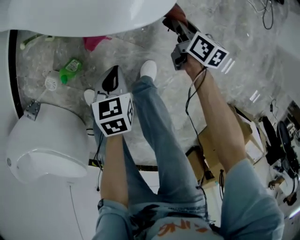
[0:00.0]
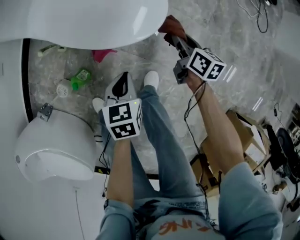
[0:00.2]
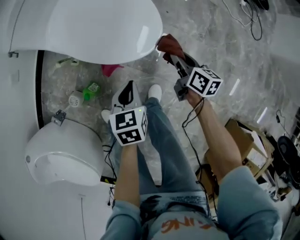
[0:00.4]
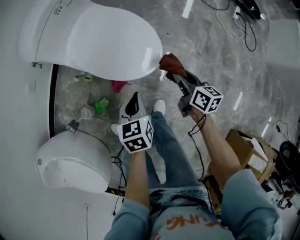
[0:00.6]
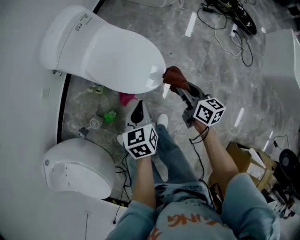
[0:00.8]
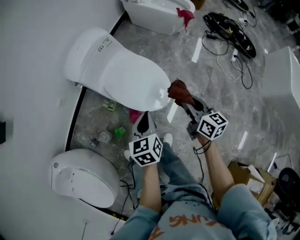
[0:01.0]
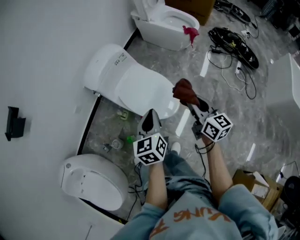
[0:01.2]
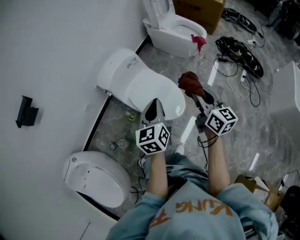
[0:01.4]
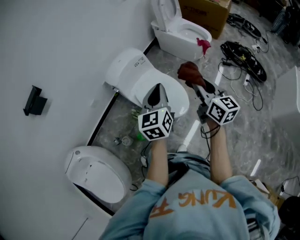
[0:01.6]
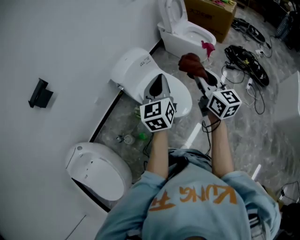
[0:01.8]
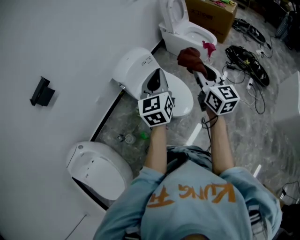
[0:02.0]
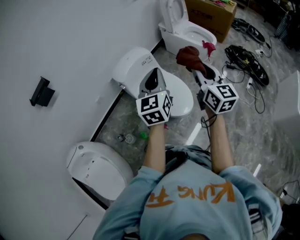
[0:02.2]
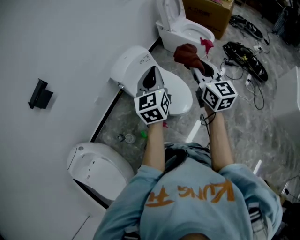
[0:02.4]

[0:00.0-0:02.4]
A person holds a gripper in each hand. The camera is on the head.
0.0 to 1.2 s: Both grippers travel together upward, roughly 50 cm. The right gripper rotates roughly 40 degrees. The left gripper points its fingers some 40 degrees further upward.
1.2 to 2.4 s: The grippers both shift upward by approximately 20 cm. The right gripper changes its angle by about 20 degrees; the left gripper turns by about 20 degrees.

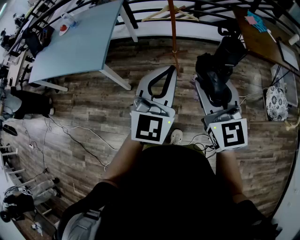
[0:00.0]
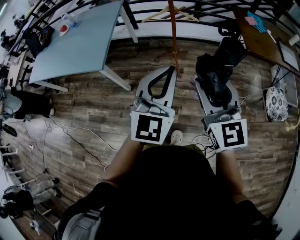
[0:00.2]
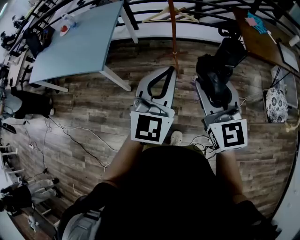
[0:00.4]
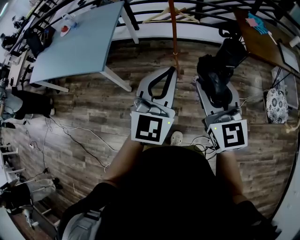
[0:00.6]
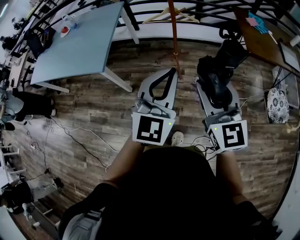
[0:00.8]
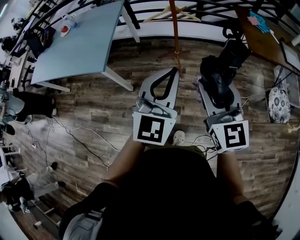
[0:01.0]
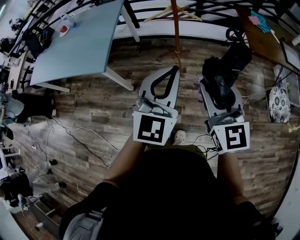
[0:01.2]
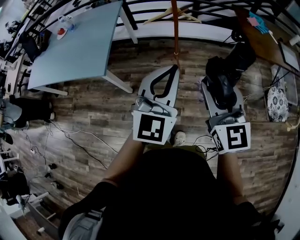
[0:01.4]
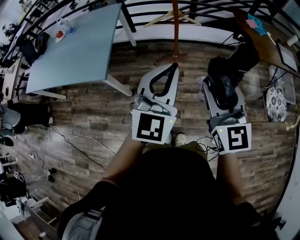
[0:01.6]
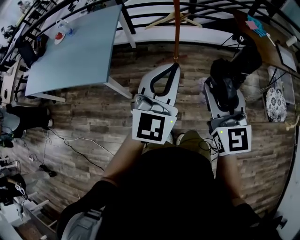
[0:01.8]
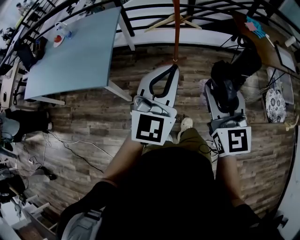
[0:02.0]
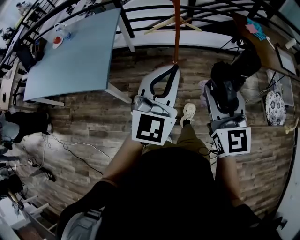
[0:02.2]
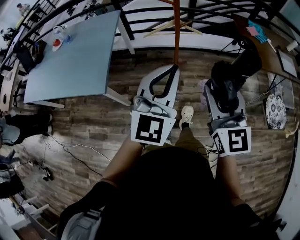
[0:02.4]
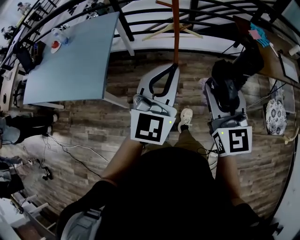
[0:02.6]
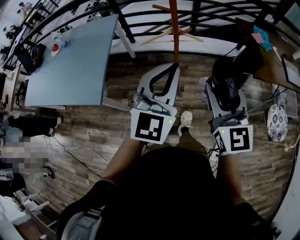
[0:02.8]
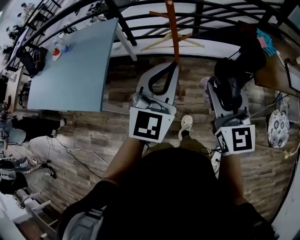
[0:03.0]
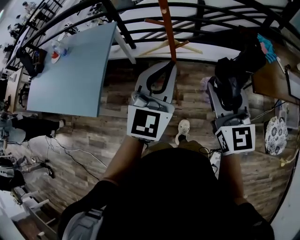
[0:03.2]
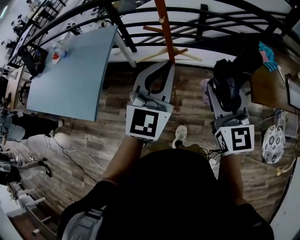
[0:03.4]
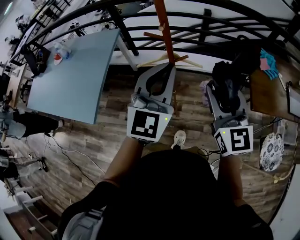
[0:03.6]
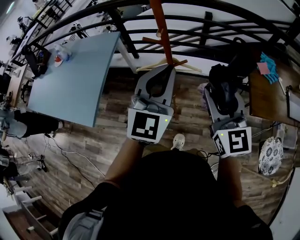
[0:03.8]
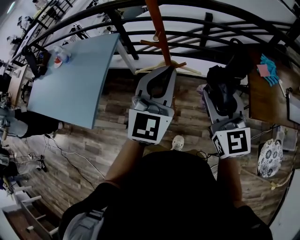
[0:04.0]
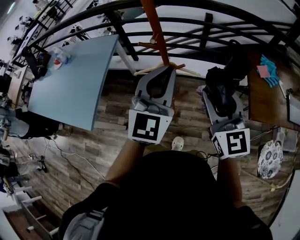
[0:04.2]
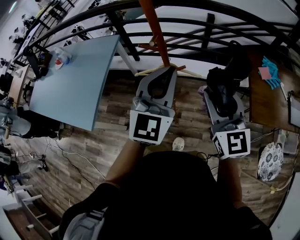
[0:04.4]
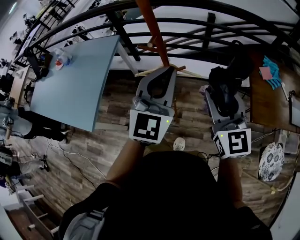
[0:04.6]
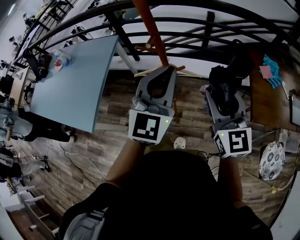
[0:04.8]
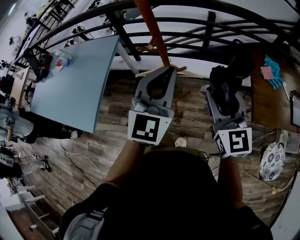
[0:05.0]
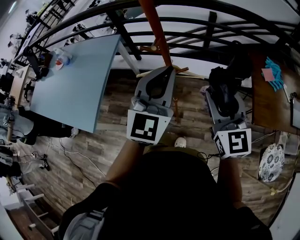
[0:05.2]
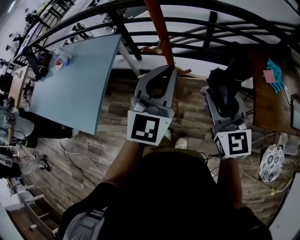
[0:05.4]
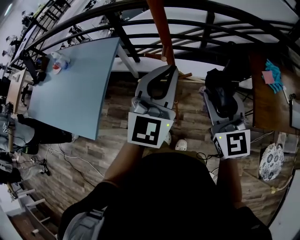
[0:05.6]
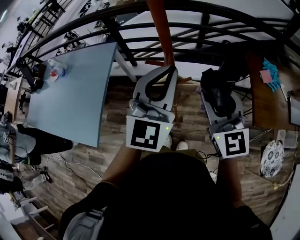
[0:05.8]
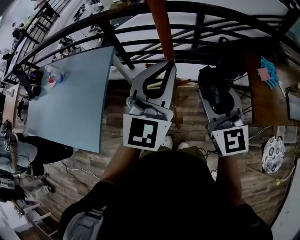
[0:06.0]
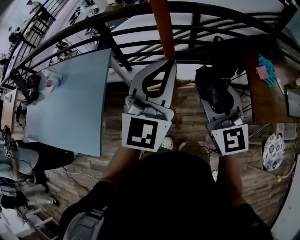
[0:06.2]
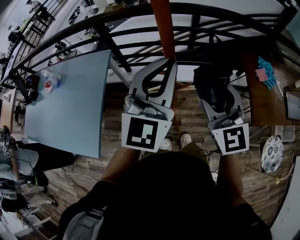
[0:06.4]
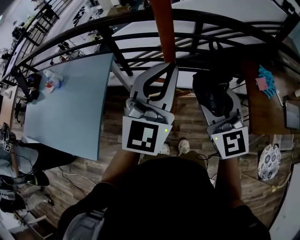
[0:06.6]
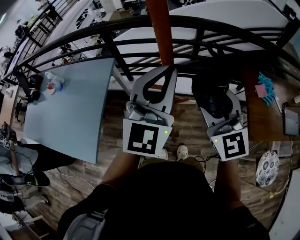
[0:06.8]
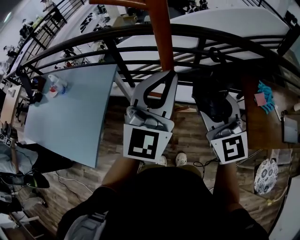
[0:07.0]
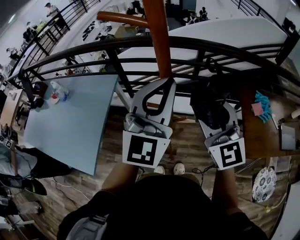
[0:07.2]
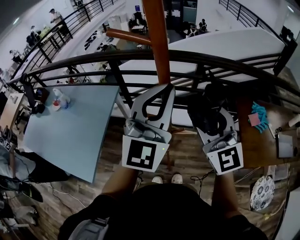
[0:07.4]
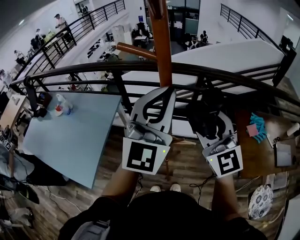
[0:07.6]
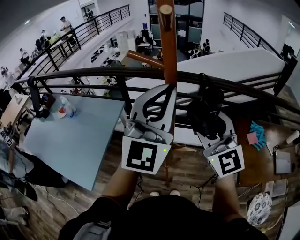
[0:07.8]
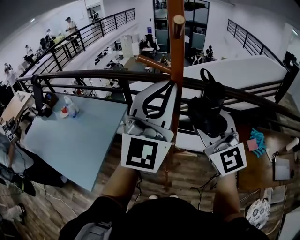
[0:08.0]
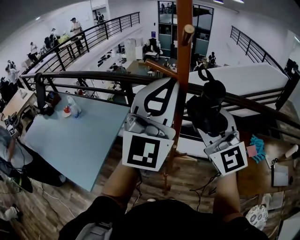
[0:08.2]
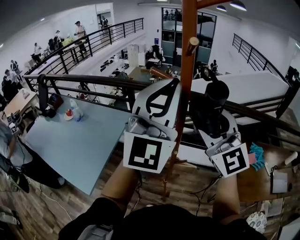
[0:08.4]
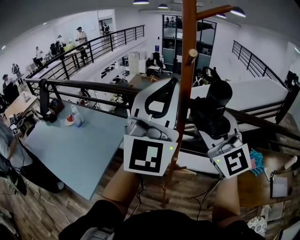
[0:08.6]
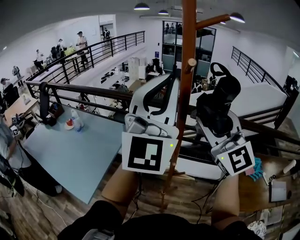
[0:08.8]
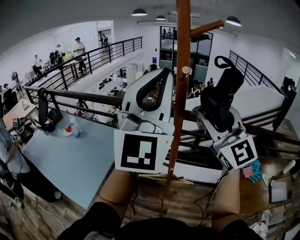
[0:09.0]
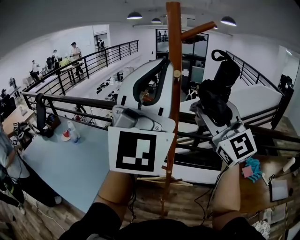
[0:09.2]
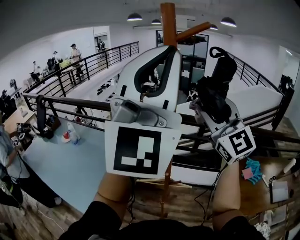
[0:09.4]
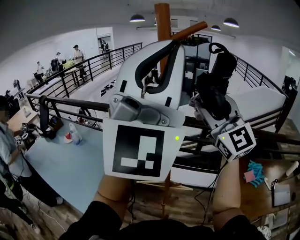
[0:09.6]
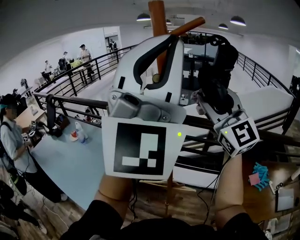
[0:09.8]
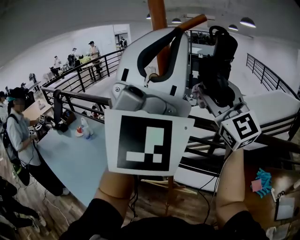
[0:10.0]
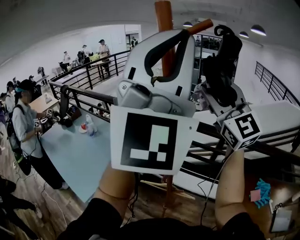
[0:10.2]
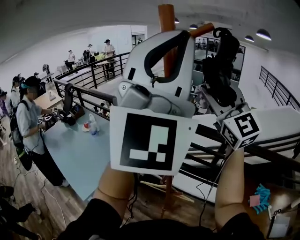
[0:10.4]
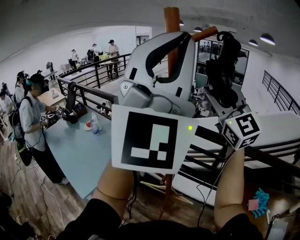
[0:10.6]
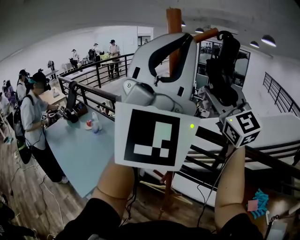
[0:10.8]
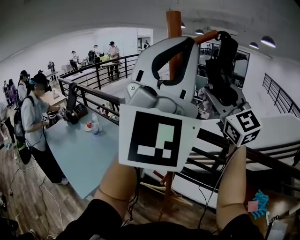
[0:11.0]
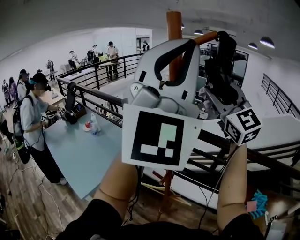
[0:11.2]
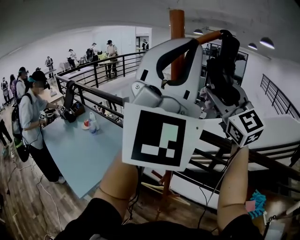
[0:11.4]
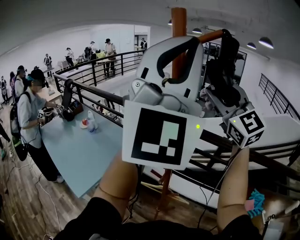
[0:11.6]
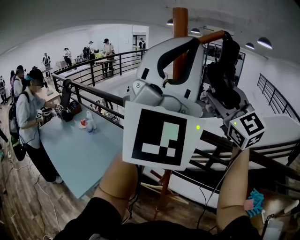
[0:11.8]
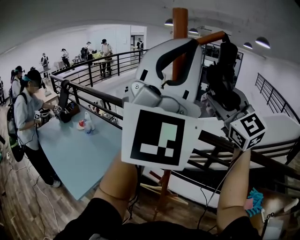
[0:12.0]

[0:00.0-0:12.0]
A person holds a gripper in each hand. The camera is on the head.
0.0 to 1.6 s: The right gripper travels forward by some 5 cm, while the left gripper heads to the left and forward, covering about 10 cm.
1.6 to 3.0 s: Both grippers travel together forward, about 20 cm.
3.0 to 4.4 s: Both grippers move forward and to the right, roughly 15 cm.
4.4 to 6.0 s: The left gripper goes approximately 10 cm forward and to the left. The right gripper moves to the left and forward, some 10 cm.
6.0 to 7.6 s: The right gripper heads upward and forward, covering roughly 15 cm; the left gripper goes some 15 cm upward.
7.6 to 9.0 s: The grippers both shift upward by about 20 cm. The left gripper rotates approximately 20 degrees.
9.0 to 10.4 s: The left gripper shifts some 10 cm upward and to the right, and swivels approximately 20 degrees; the right gripper is displaced forward and upward by approximately 10 cm.
10.4 to 12.0 s: The grippers stay close to where they were, moving slightly.

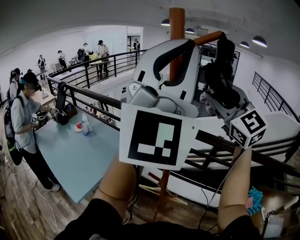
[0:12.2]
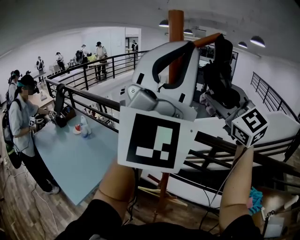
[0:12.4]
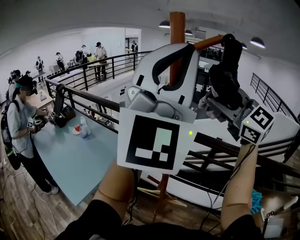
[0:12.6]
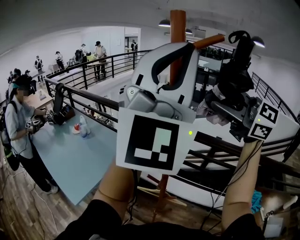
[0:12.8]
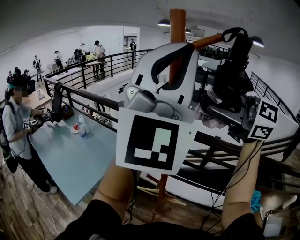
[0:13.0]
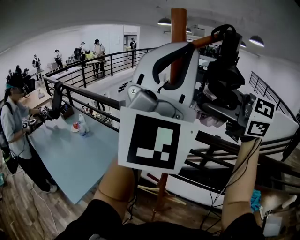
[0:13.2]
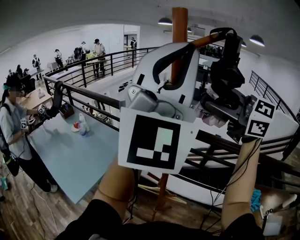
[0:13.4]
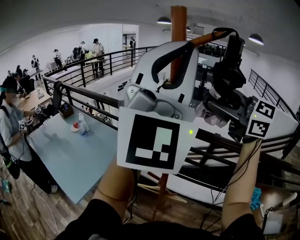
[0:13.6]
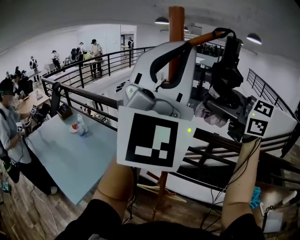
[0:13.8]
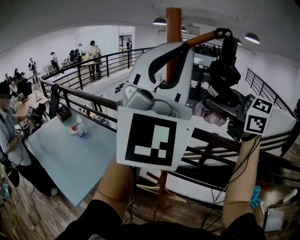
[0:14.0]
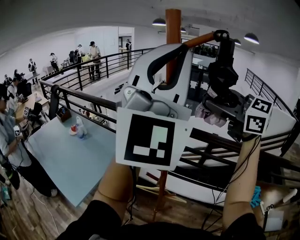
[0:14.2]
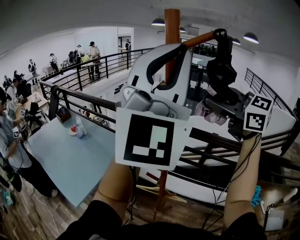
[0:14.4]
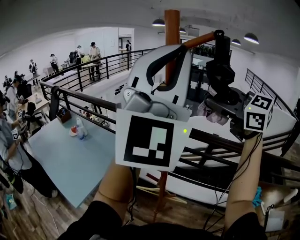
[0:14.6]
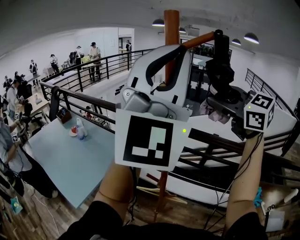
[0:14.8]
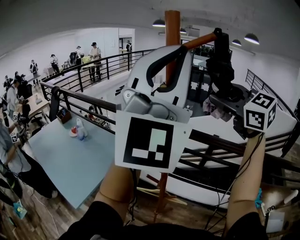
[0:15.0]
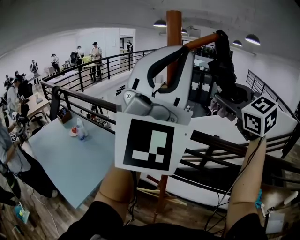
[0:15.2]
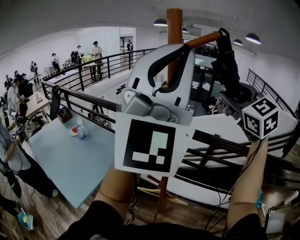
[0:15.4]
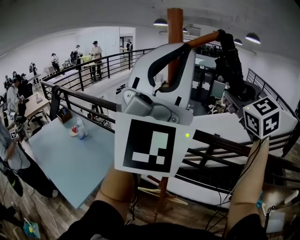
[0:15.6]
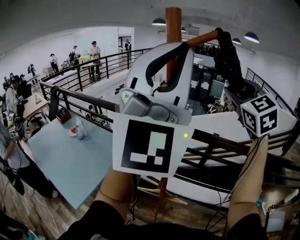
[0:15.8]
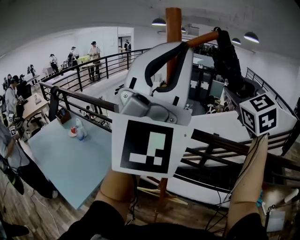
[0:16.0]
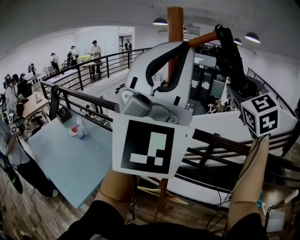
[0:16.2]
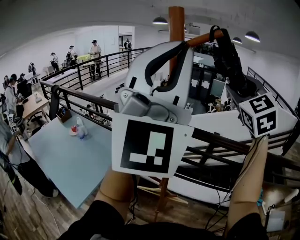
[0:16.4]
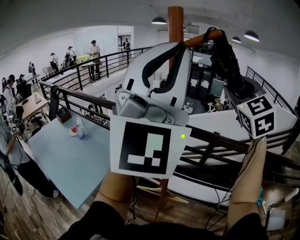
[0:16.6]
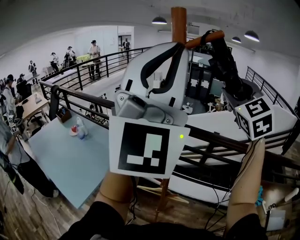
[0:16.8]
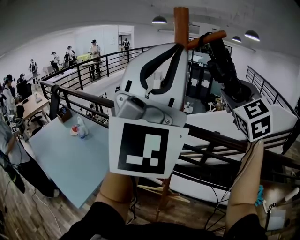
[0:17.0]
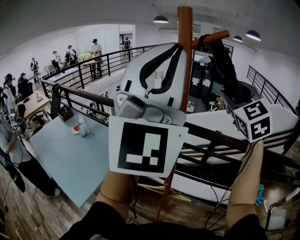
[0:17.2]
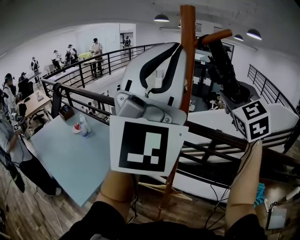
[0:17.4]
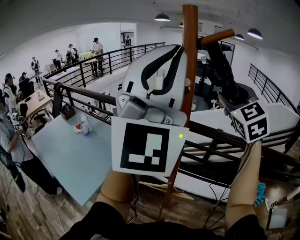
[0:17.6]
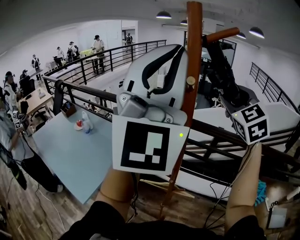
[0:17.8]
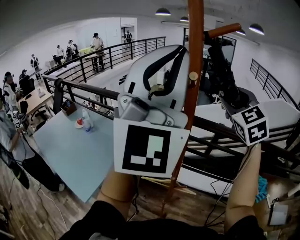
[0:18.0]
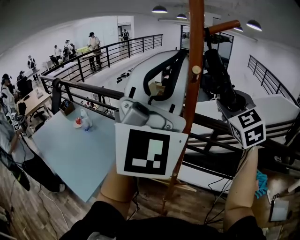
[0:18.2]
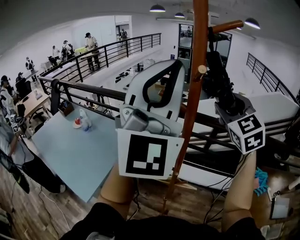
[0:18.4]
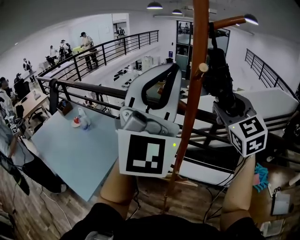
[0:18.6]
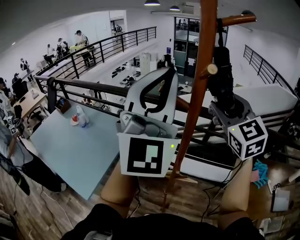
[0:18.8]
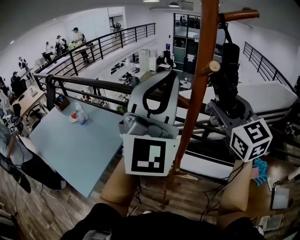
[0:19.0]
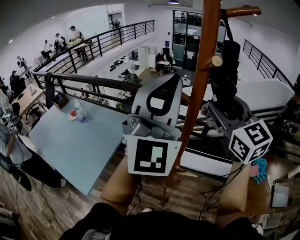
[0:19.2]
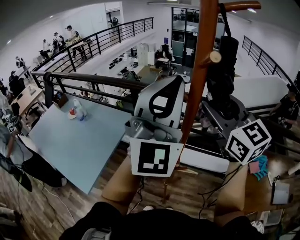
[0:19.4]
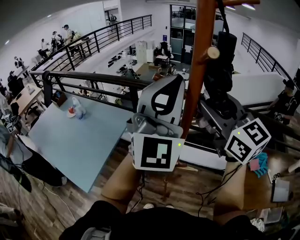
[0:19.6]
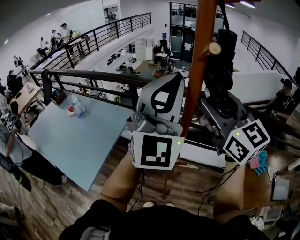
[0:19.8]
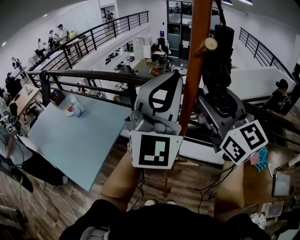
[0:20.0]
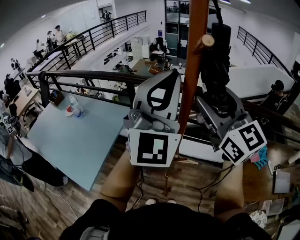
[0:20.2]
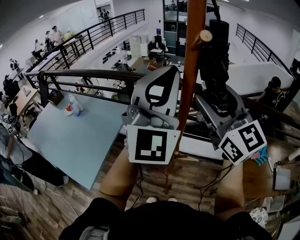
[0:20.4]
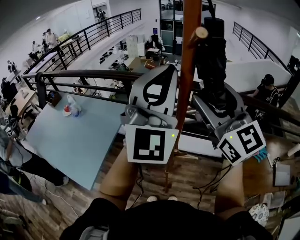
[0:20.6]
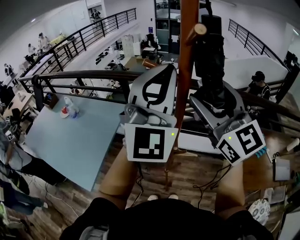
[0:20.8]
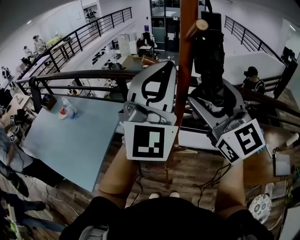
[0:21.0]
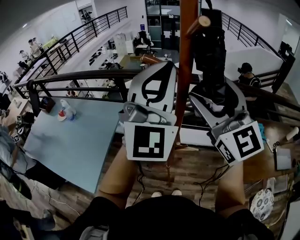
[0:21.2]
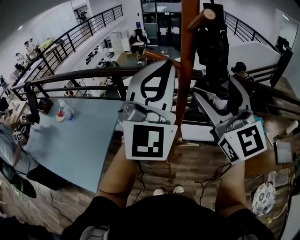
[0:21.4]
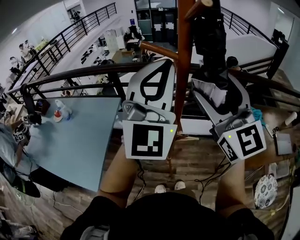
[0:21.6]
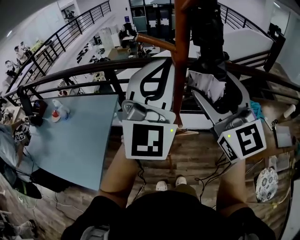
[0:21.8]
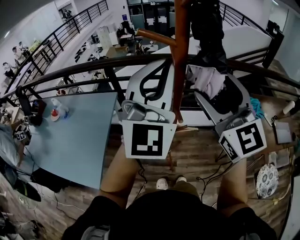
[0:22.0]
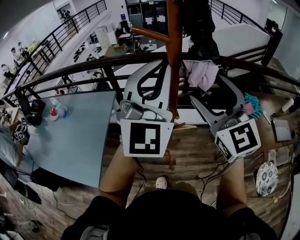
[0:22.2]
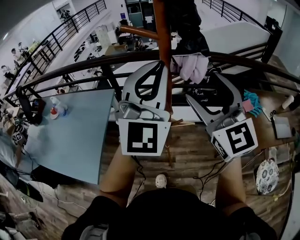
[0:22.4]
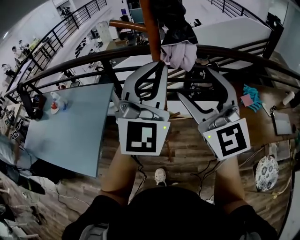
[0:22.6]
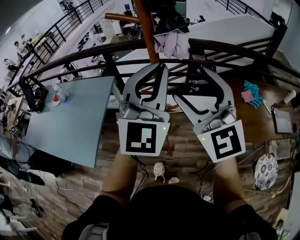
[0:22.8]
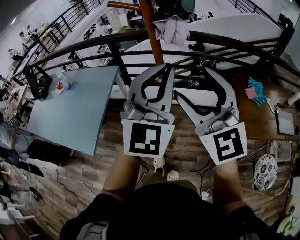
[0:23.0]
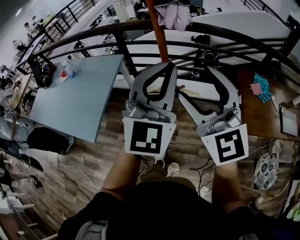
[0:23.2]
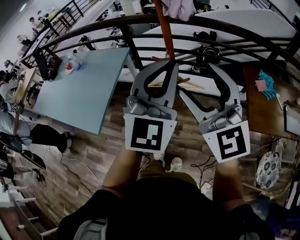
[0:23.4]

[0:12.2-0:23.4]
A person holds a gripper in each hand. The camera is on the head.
12.2 to 13.8 s: The right gripper swivels roughly 30 degrees.
13.8 to 15.4 s: The right gripper goes roughly 5 cm to the right, and swivels roughly 40 degrees.
15.4 to 17.0 s: The grippers move only a little.
17.0 to 18.6 s: The two grippers go about 10 cm downward.
18.6 to 20.2 s: The right gripper heads backward, covering some 5 cm, and swivels about 30 degrees, while the left gripper shifts about 10 cm downward.
20.2 to 21.8 s: The right gripper moves backward, approximately 10 cm, and rotates approximately 20 degrees. Meanwhile the left gripper goes roughly 5 cm downward.
21.8 to 23.4 s: The grippers both shift backward and downward by roughly 20 cm.
